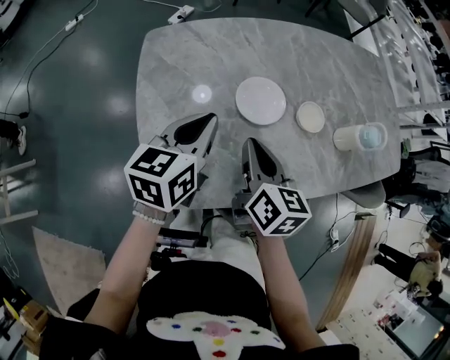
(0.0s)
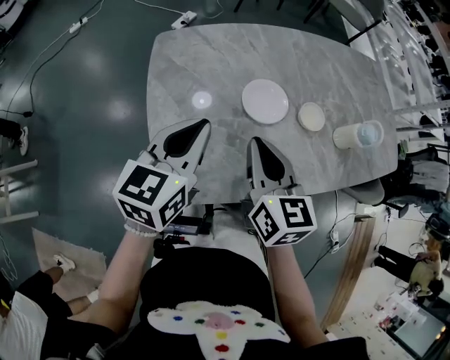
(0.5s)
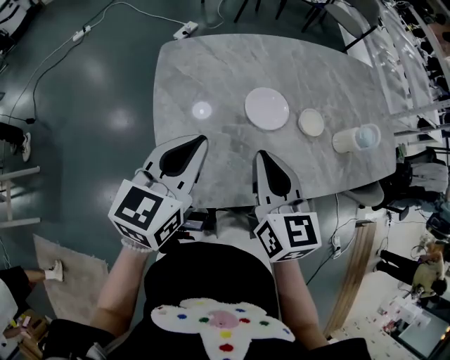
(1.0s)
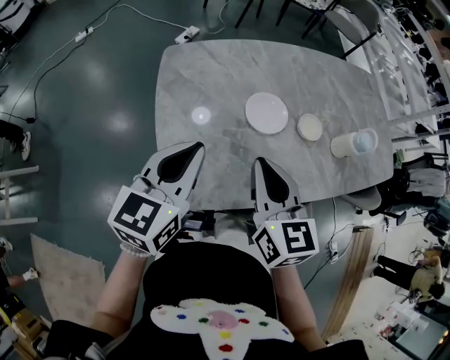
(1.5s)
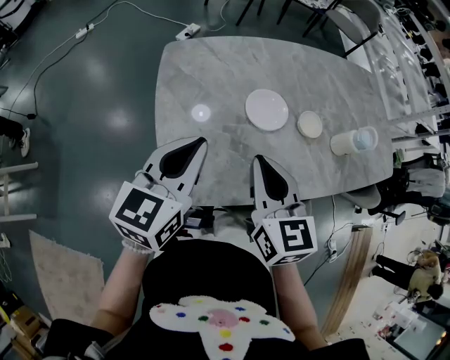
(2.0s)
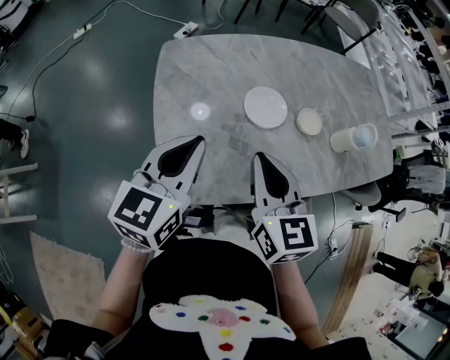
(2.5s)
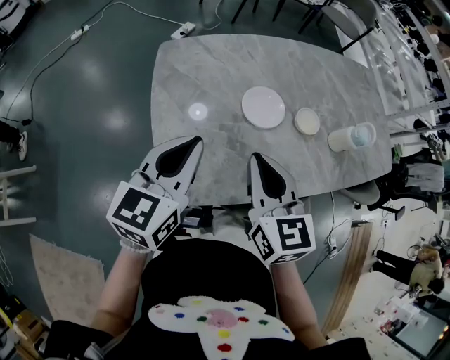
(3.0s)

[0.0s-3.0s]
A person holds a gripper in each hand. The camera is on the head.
0.0s to 1.5s: The left gripper goes some 15 cm backward, upward and to the left, while the right gripper is displaced upward and backward by some 10 cm, and turns by some 20 degrees.
1.5s to 3.0s: Both grippers stay about where they are.

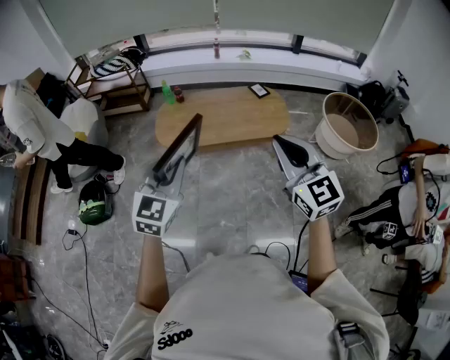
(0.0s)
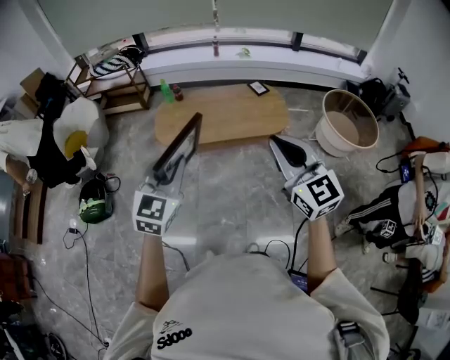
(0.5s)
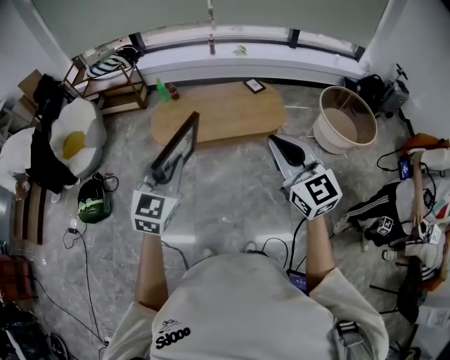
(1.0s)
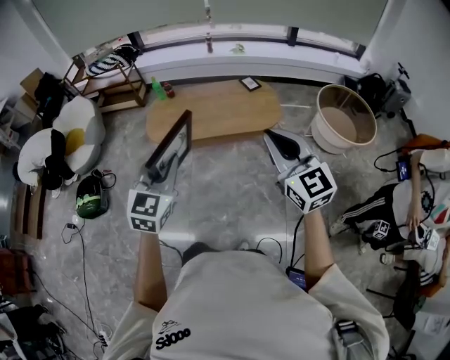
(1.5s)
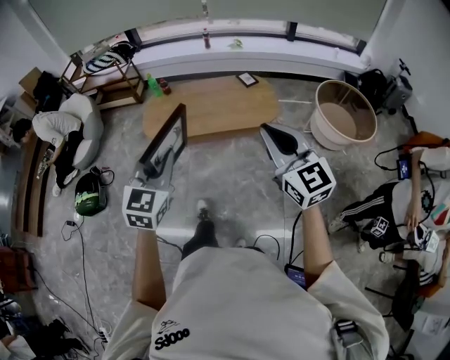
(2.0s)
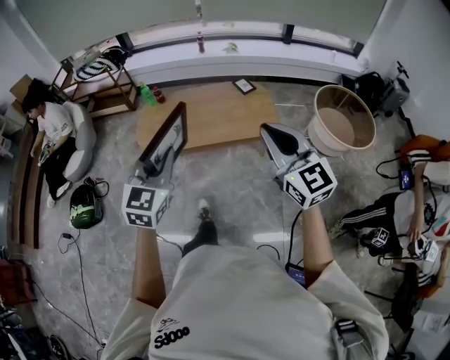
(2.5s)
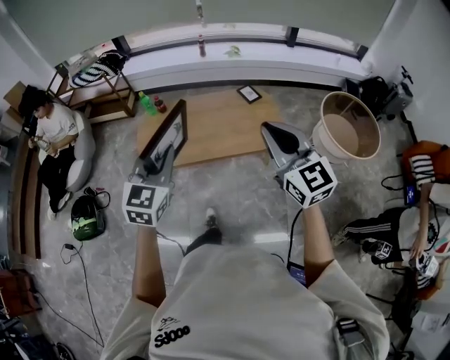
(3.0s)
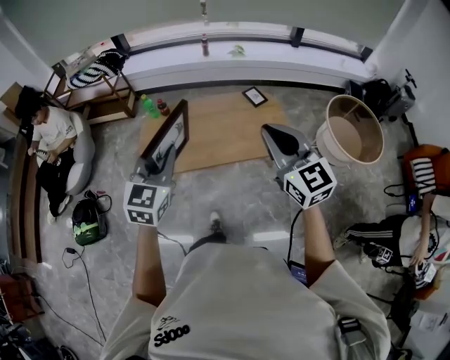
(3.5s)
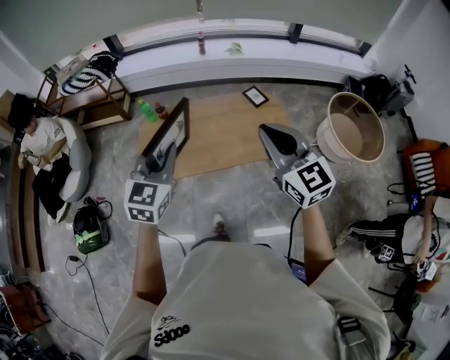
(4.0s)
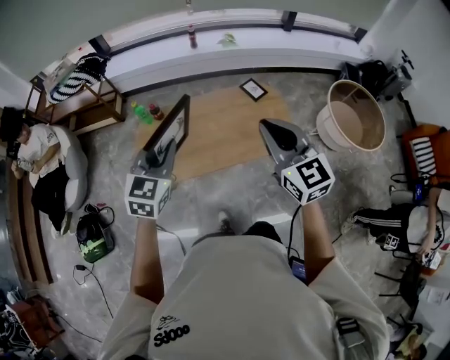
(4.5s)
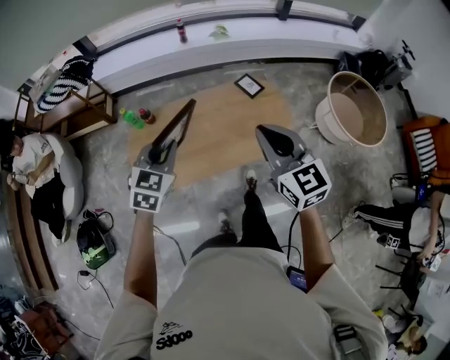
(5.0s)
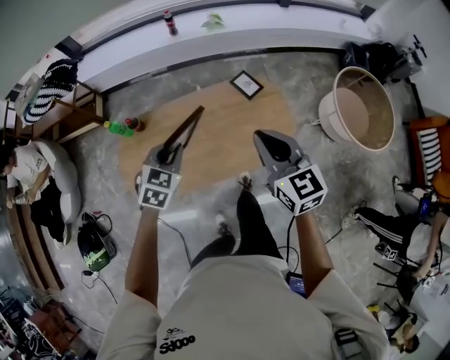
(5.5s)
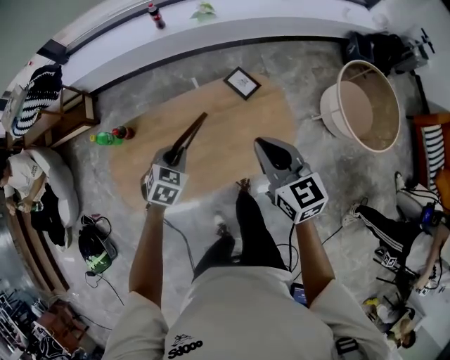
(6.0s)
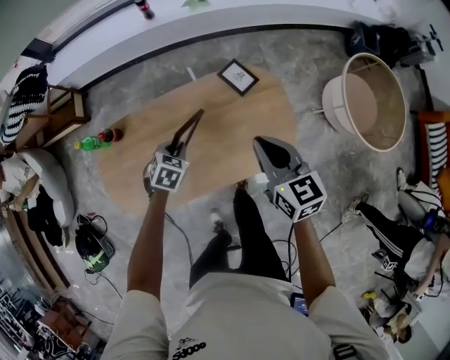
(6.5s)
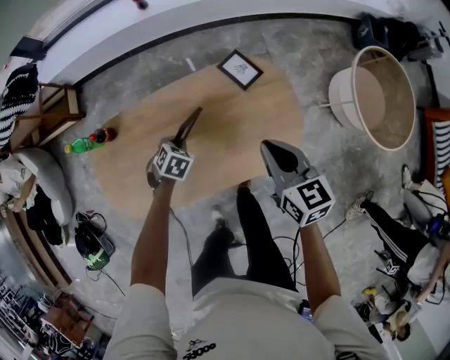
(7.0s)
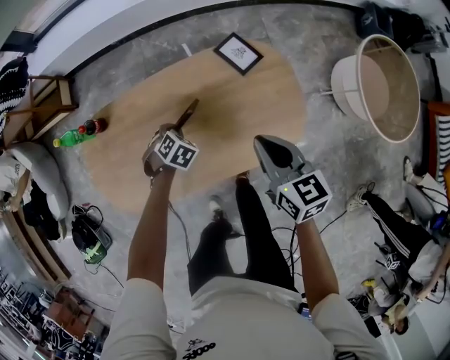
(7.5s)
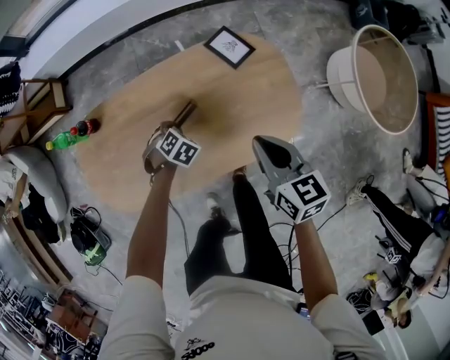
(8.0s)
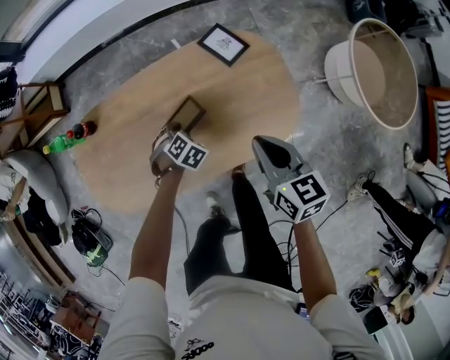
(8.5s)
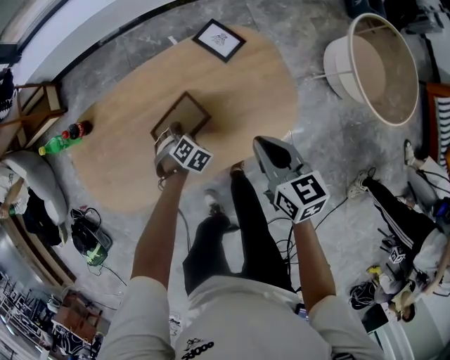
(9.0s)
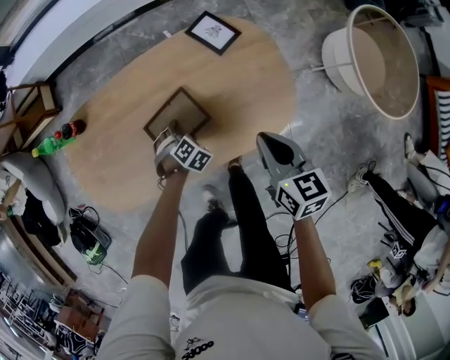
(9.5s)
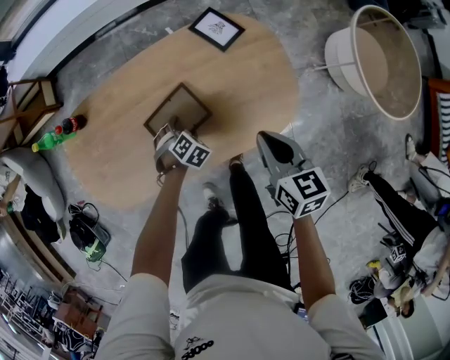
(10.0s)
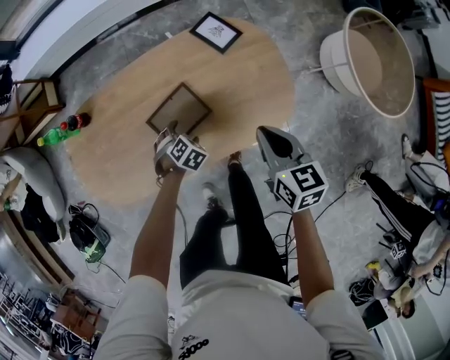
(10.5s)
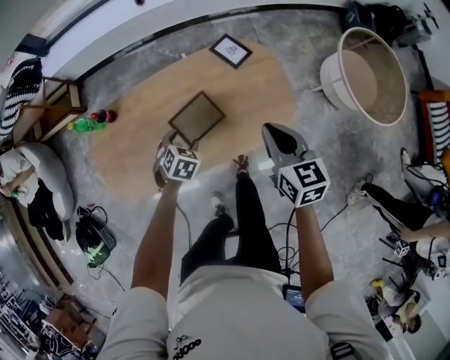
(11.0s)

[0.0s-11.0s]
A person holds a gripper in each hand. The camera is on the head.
0.0s to 2.0s: Both grippers move to the right, roughly 10 cm.
2.0s to 3.5s: The grippers both shift forward by approximately 25 cm.
3.5s to 5.5s: The two grippers go about 35 cm forward and downward. The left gripper changes its angle by approximately 30 degrees.
5.5s to 7.5s: The right gripper shifts approximately 25 cm downward, and changes its angle by some 20 degrees. The left gripper travels downward by roughly 35 cm, and tips its fingers downward by about 30 degrees.
7.5s to 9.0s: The right gripper changes place by roughly 5 cm. The left gripper shifts by some 10 cm, and opens its fingers.
9.0s to 11.0s: Both grippers move upward, approximately 10 cm. The left gripper turns by about 20 degrees.

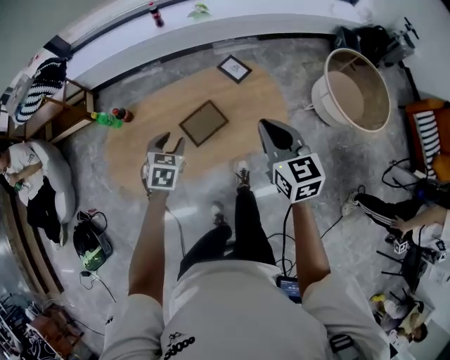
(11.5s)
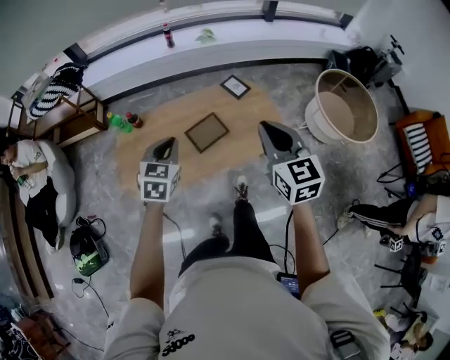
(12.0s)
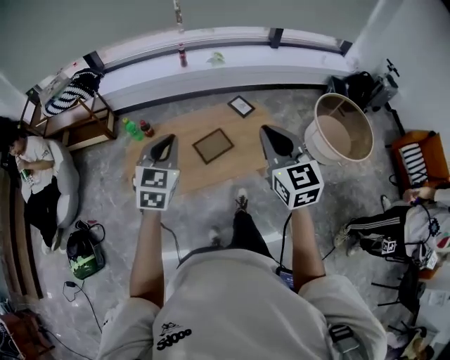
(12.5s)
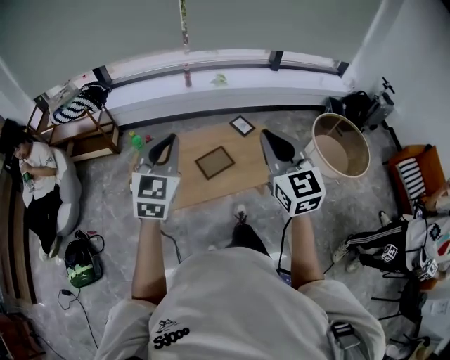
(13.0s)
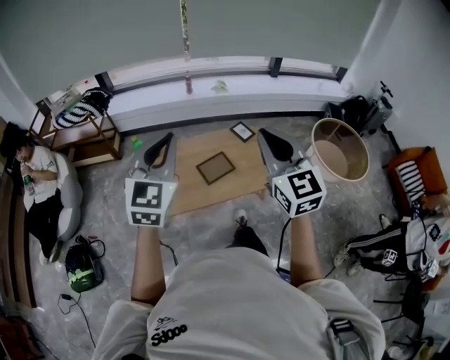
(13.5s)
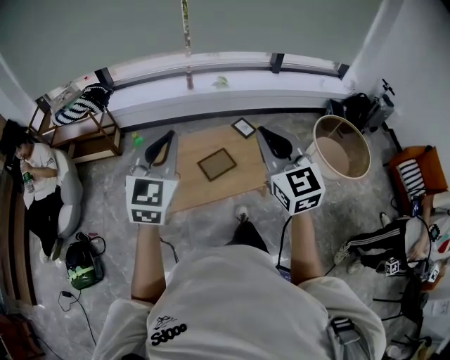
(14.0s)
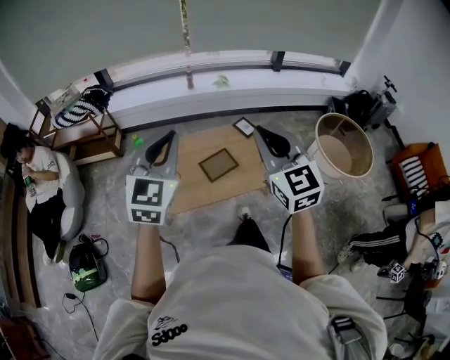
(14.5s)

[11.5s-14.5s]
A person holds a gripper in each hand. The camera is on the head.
11.5s to 13.0s: The grippers both shift upward and backward by about 35 cm. The right gripper turns by some 30 degrees. The left gripper angles its fingers upward, by some 40 degrees, and closes.
13.0s to 14.5s: There are only small adjustments of the grippers.

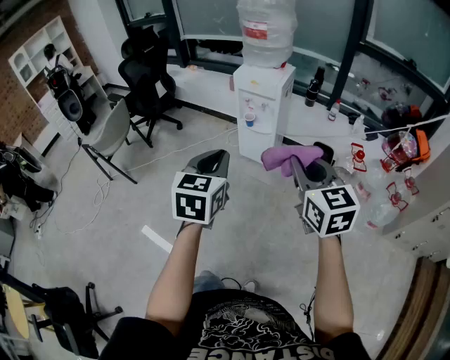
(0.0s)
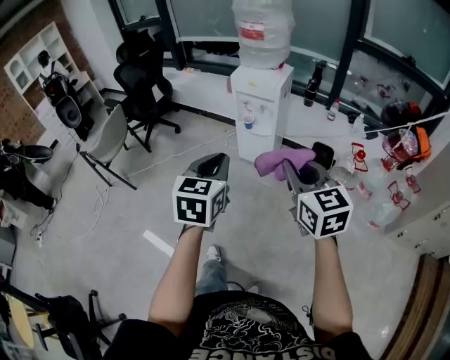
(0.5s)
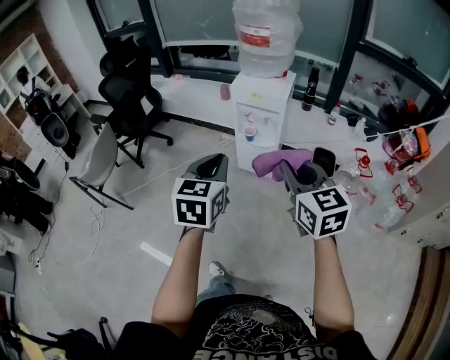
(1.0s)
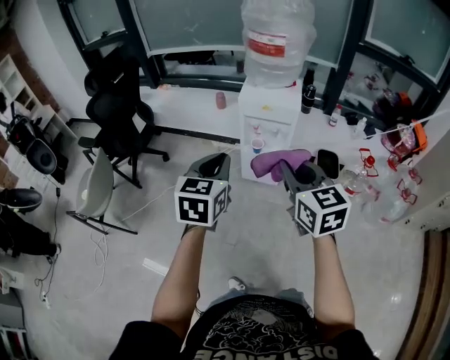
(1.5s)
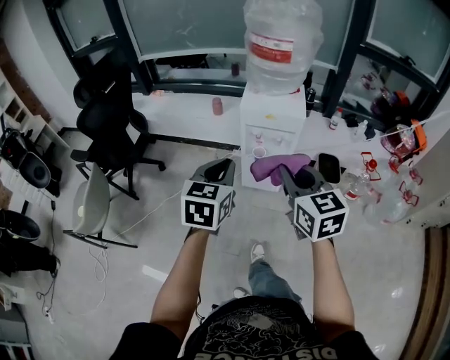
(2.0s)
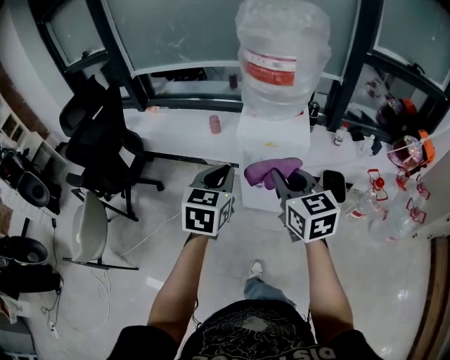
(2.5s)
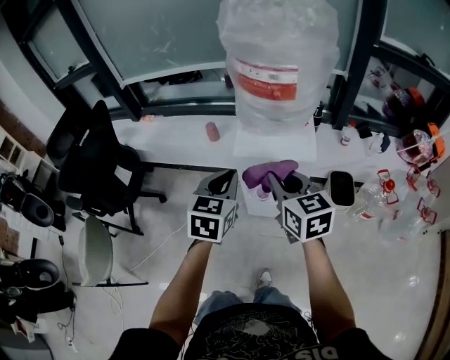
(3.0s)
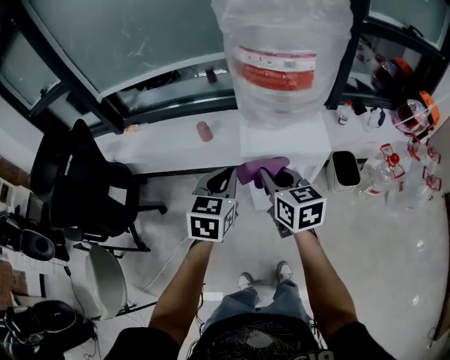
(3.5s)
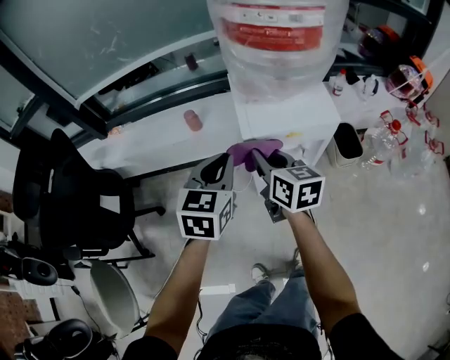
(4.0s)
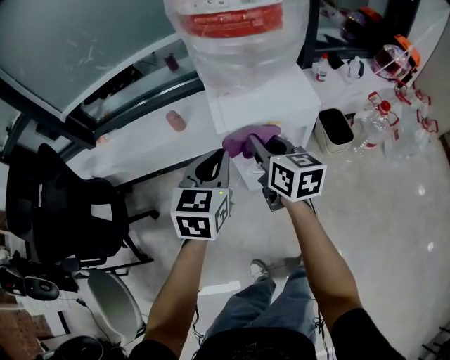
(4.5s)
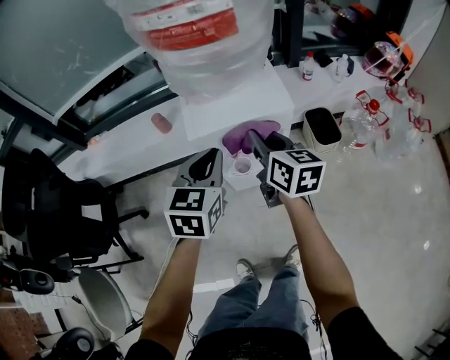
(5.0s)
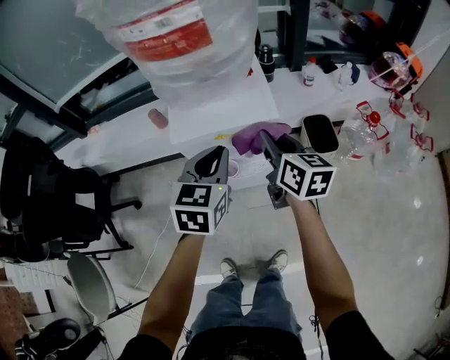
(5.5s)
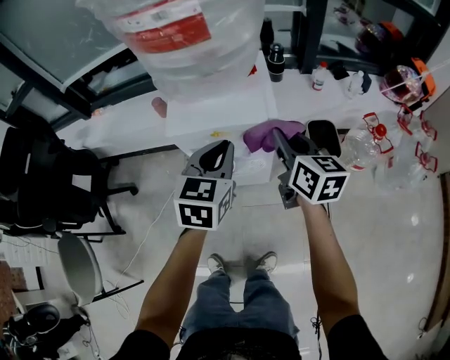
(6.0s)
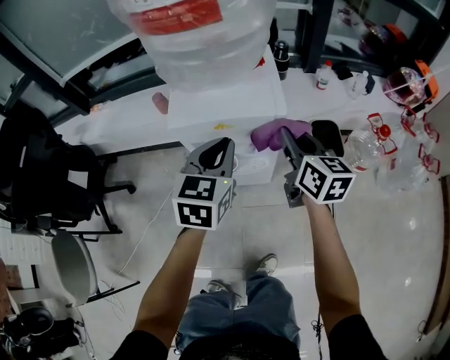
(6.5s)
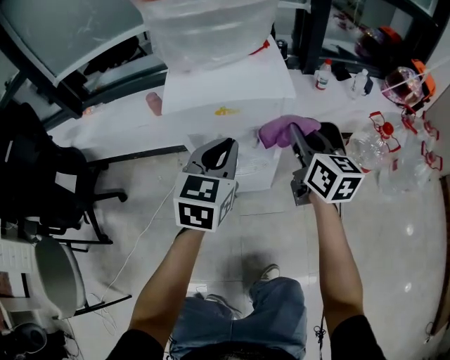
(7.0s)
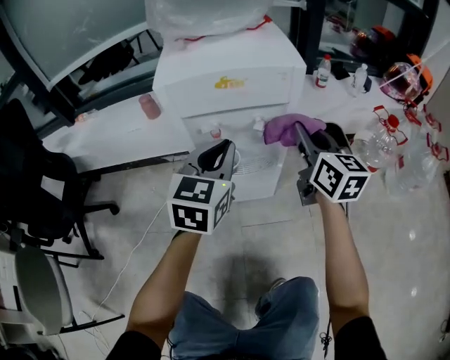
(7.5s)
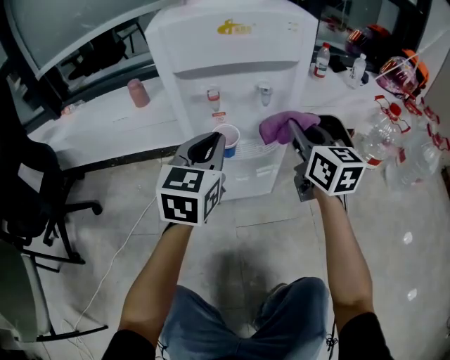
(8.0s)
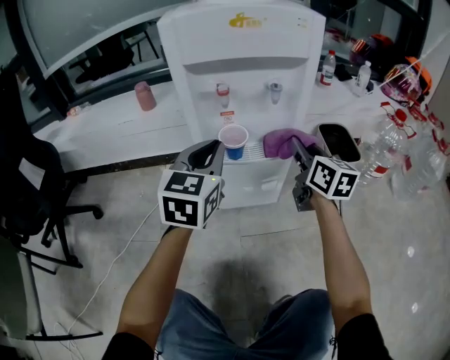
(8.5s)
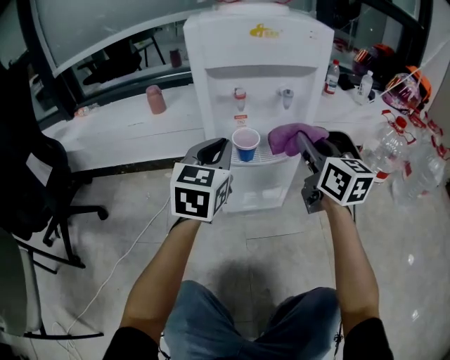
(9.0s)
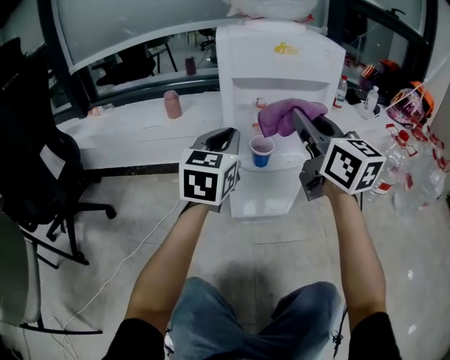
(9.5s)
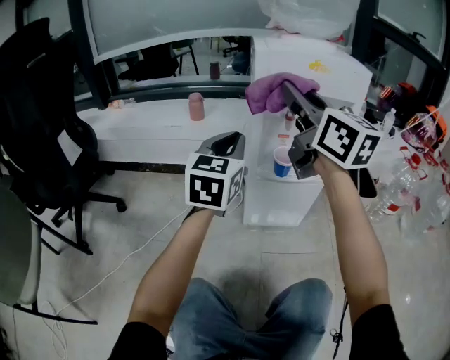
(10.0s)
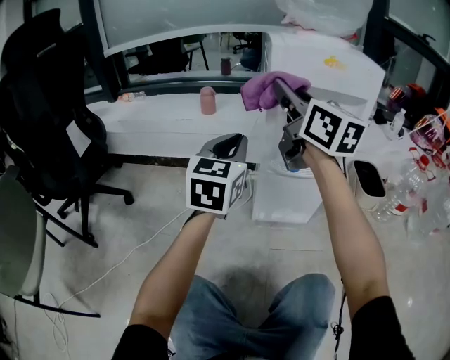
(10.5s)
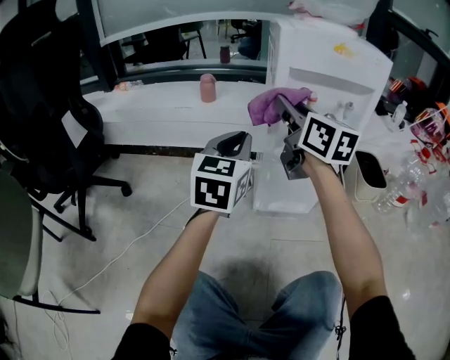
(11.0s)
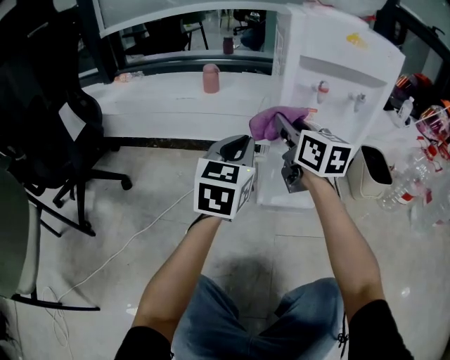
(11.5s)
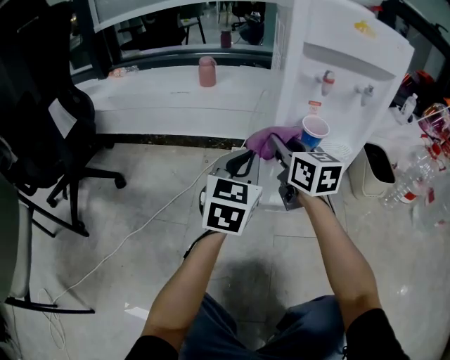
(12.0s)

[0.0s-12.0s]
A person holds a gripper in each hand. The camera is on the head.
0.0s to 2.0s: Both grippers move forward and to the left, about 35 cm.
2.0s to 4.0s: The left gripper goes roughly 30 cm forward, while the right gripper travels forward and downward by approximately 35 cm, and rotates roughly 30 degrees.
4.0s to 6.0s: Both grippers move to the right, some 25 cm.
6.0s to 8.0s: Both grippers travel together downward, roughly 25 cm.
8.0s to 10.0s: The left gripper shifts some 10 cm to the left; the right gripper heads to the left and upward, covering some 25 cm, and rotates some 30 degrees.
10.0s to 12.0s: The right gripper goes some 30 cm downward, and changes its angle by some 20 degrees. The left gripper shifts some 15 cm downward.
